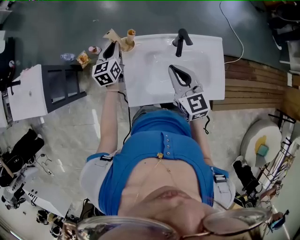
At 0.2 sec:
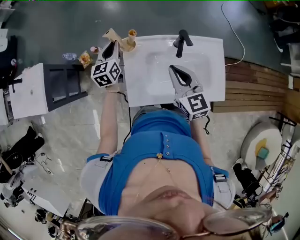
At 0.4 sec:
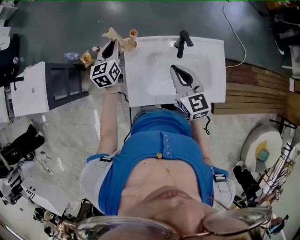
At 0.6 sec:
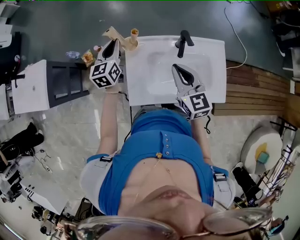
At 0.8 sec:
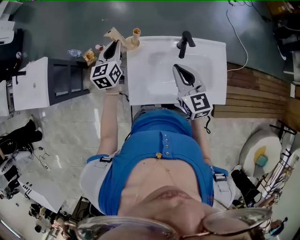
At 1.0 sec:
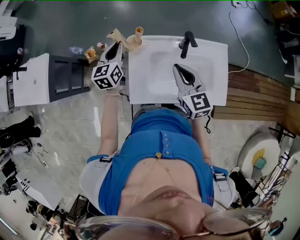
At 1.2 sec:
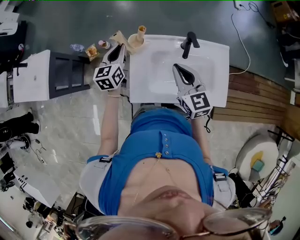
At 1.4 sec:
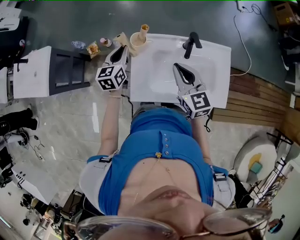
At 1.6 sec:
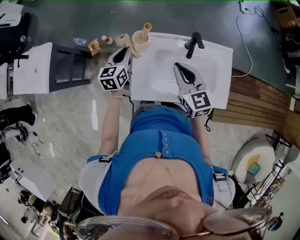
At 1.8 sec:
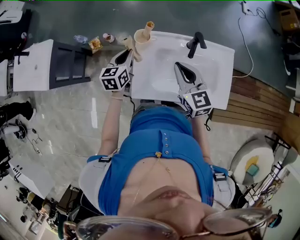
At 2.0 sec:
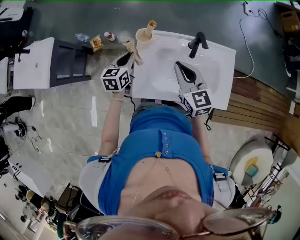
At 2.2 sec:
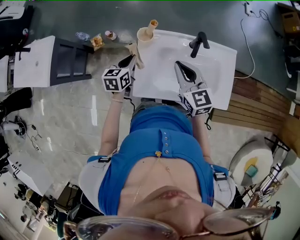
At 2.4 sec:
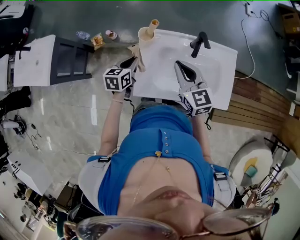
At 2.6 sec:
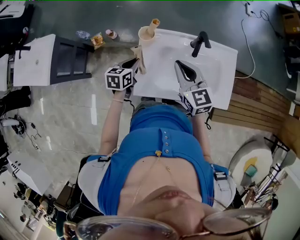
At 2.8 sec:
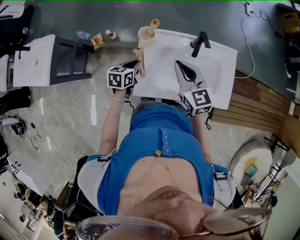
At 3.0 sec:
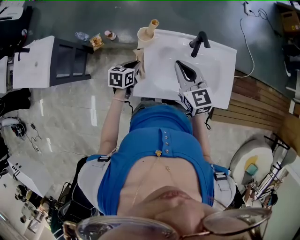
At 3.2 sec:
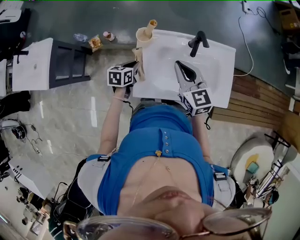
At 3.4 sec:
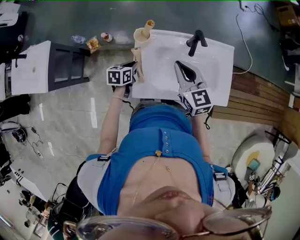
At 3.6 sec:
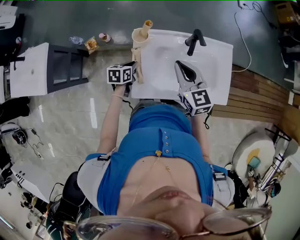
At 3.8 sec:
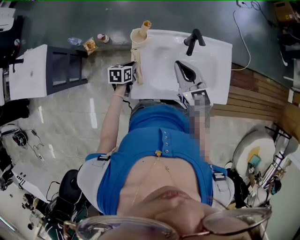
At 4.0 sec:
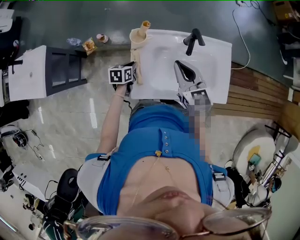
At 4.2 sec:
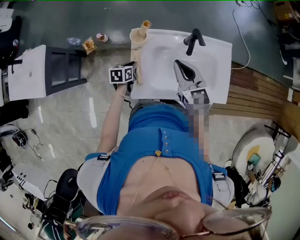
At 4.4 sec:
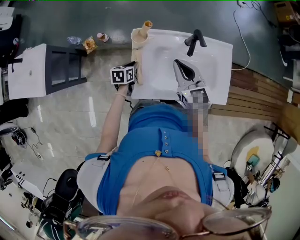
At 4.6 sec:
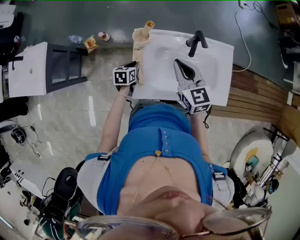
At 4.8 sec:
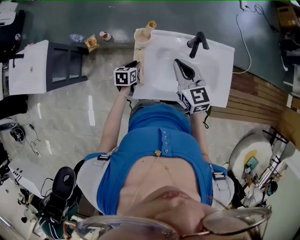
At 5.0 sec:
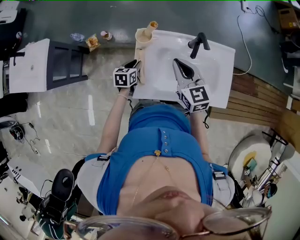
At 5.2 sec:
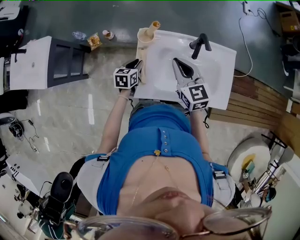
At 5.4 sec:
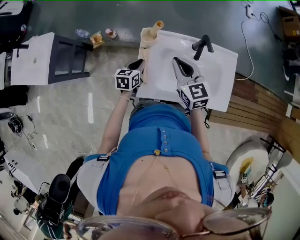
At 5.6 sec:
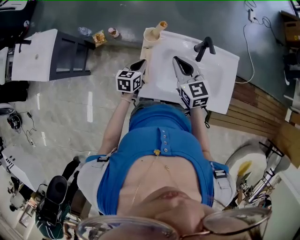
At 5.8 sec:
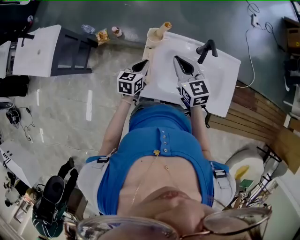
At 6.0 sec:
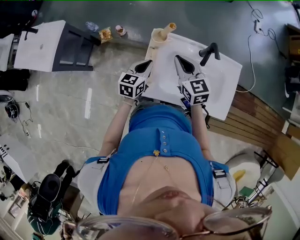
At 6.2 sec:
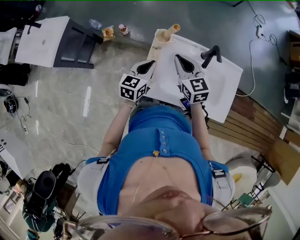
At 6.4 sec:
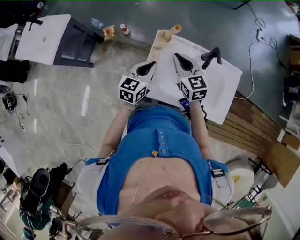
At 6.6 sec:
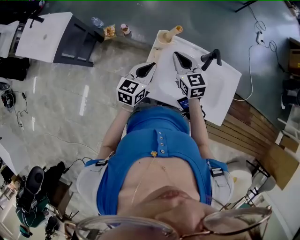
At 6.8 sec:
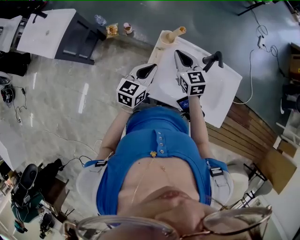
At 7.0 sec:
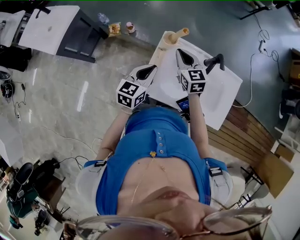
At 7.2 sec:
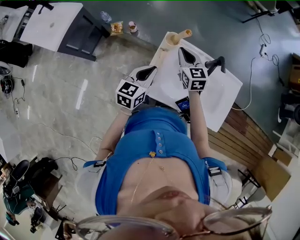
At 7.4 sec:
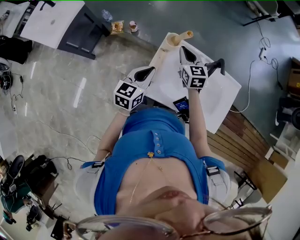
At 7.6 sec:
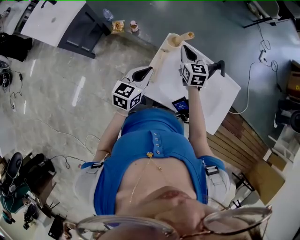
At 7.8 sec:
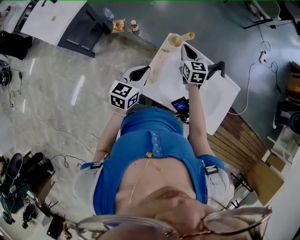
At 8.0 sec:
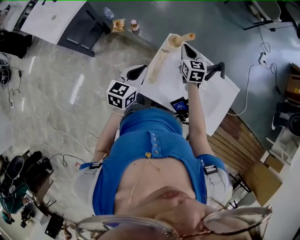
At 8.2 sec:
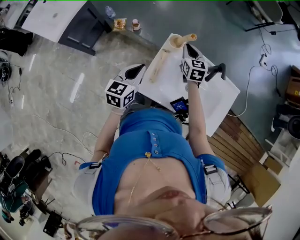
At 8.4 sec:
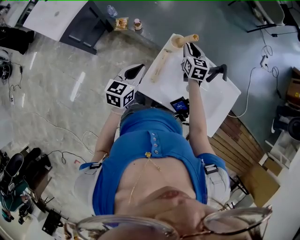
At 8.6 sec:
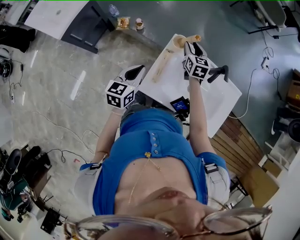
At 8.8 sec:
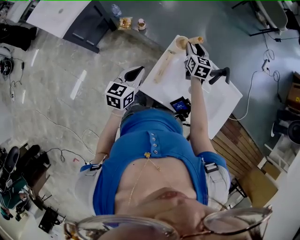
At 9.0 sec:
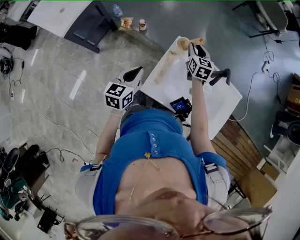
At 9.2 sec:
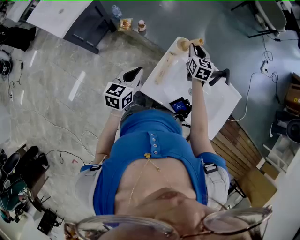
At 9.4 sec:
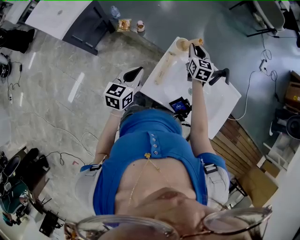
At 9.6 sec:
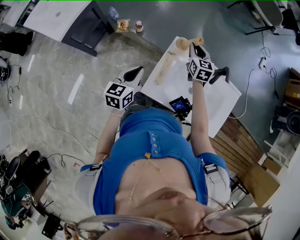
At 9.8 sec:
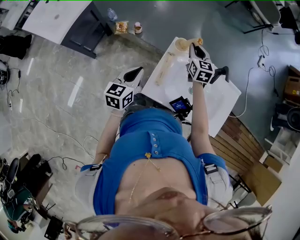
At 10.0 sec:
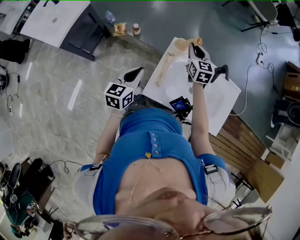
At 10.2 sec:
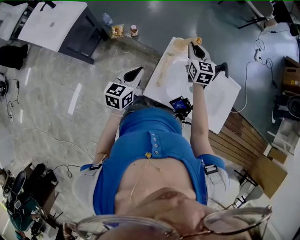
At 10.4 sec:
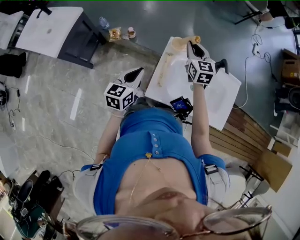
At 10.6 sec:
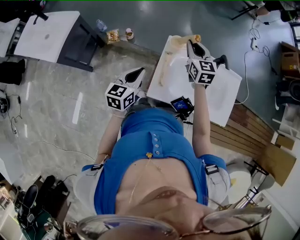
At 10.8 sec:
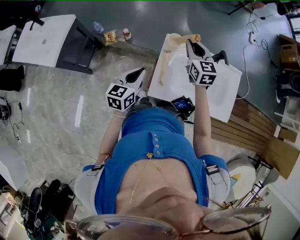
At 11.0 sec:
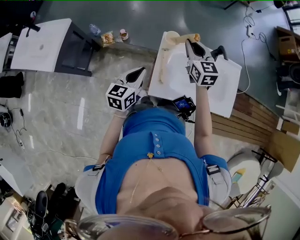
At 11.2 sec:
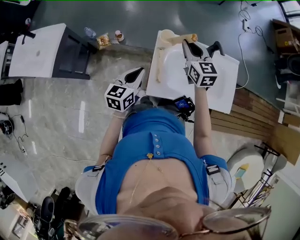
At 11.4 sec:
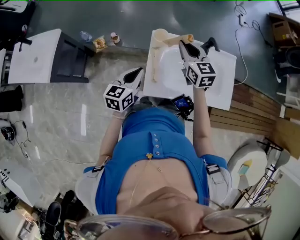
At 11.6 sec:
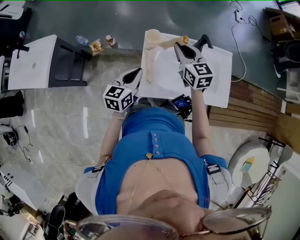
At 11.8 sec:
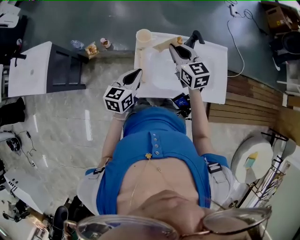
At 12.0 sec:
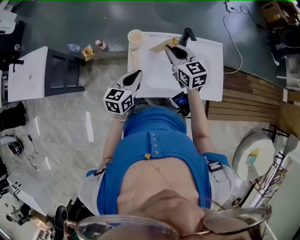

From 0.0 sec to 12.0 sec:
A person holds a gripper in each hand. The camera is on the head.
From 0.0 sec to 1.6 sec: The left gripper heads backward, covering about 5 cm.
From 1.6 sec to 3.0 sec: The left gripper heads downward and backward, covering roughly 10 cm, and changes its angle by some 30 degrees.
From 3.0 sec to 4.4 sec: The left gripper travels downward by some 10 cm.
From 4.4 sec to 6.0 sec: The left gripper shifts approximately 15 cm upward, and swivels approximately 30 degrees; the right gripper heads to the left, covering roughly 5 cm.
From 6.0 sec to 7.6 sec: The left gripper heads upward, covering about 5 cm. The right gripper is displaced forward by approximately 10 cm.
From 7.6 sec to 9.0 sec: The left gripper moves to the left, about 10 cm. The right gripper is displaced forward by about 5 cm, and opens its fingers.
From 9.0 sec to 10.4 sec: The right gripper heads upward, covering roughly 10 cm, and closes.
From 10.4 sec to 12.0 sec: The left gripper moves to the right, approximately 15 cm; the right gripper moves to the right and backward, about 15 cm.

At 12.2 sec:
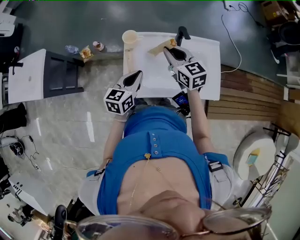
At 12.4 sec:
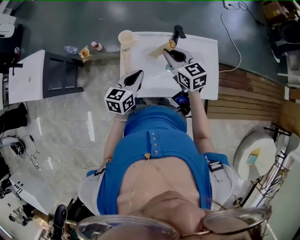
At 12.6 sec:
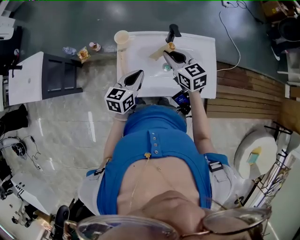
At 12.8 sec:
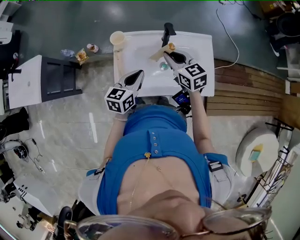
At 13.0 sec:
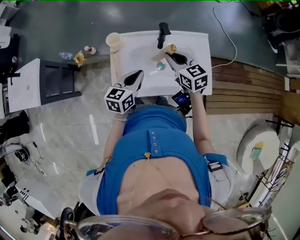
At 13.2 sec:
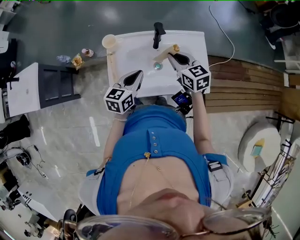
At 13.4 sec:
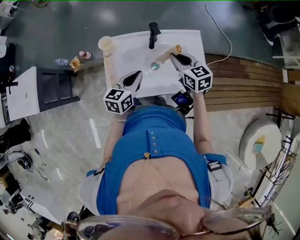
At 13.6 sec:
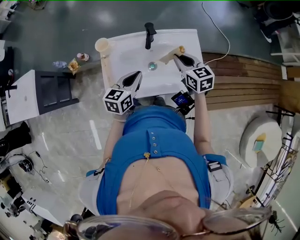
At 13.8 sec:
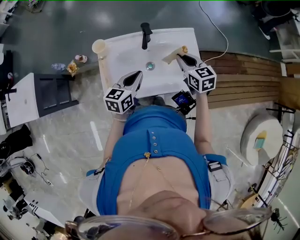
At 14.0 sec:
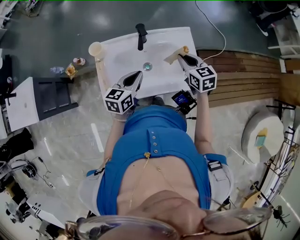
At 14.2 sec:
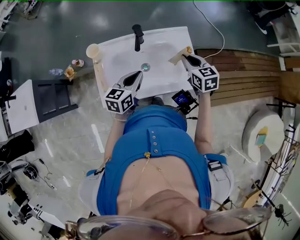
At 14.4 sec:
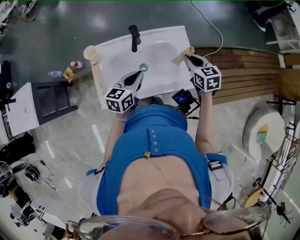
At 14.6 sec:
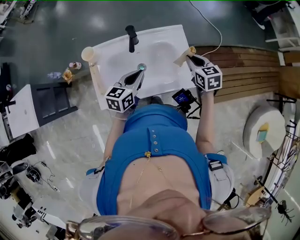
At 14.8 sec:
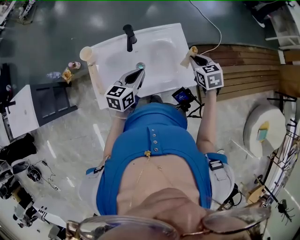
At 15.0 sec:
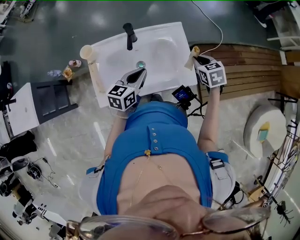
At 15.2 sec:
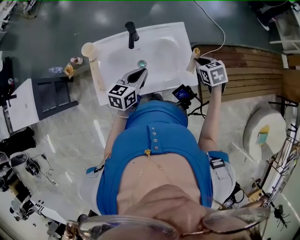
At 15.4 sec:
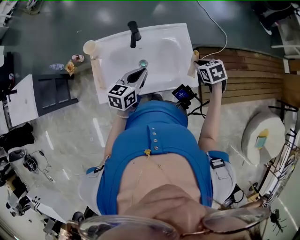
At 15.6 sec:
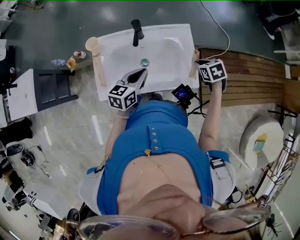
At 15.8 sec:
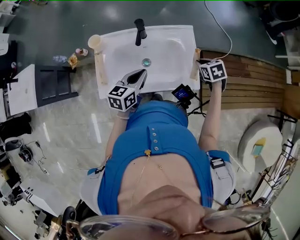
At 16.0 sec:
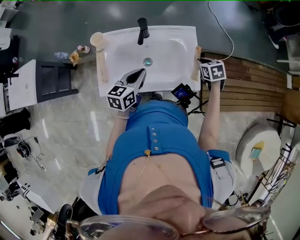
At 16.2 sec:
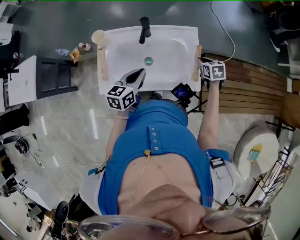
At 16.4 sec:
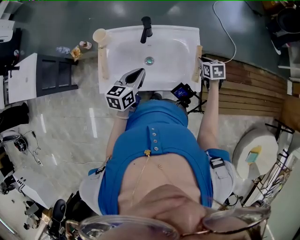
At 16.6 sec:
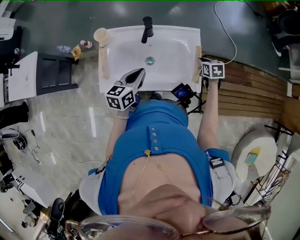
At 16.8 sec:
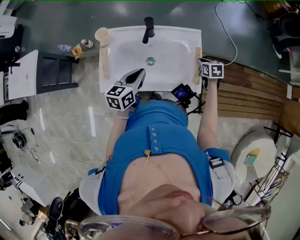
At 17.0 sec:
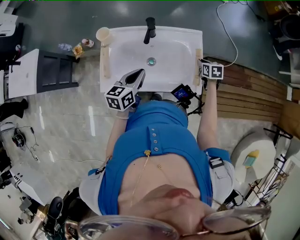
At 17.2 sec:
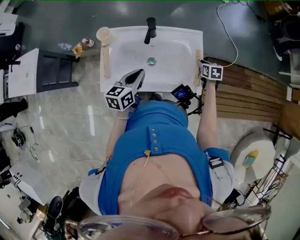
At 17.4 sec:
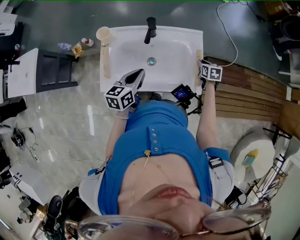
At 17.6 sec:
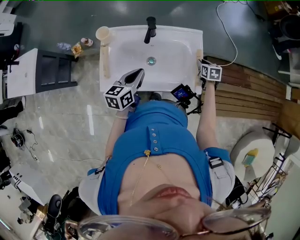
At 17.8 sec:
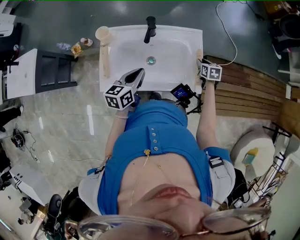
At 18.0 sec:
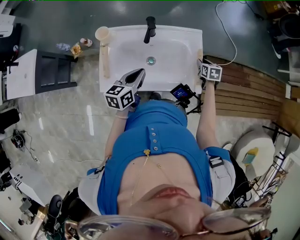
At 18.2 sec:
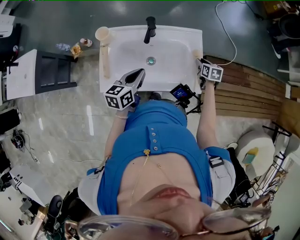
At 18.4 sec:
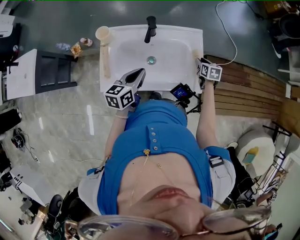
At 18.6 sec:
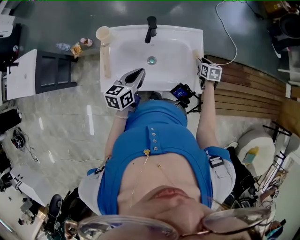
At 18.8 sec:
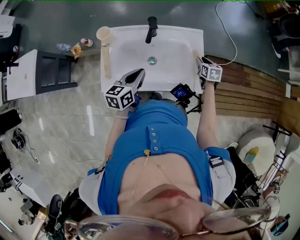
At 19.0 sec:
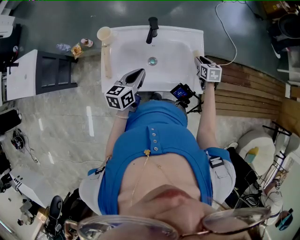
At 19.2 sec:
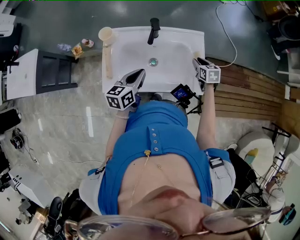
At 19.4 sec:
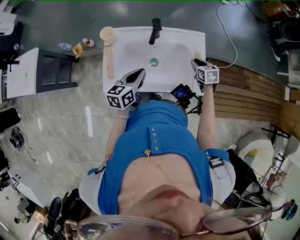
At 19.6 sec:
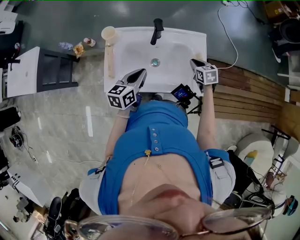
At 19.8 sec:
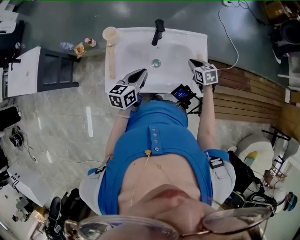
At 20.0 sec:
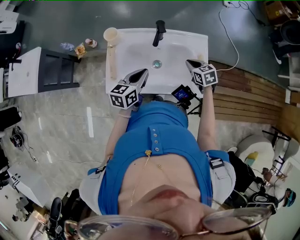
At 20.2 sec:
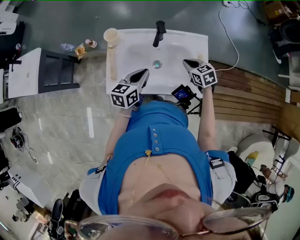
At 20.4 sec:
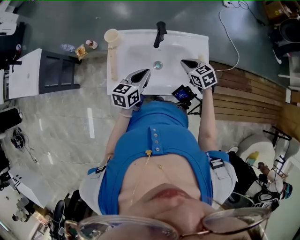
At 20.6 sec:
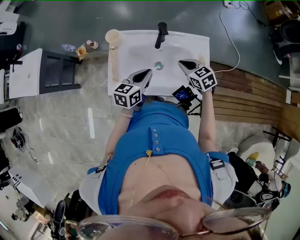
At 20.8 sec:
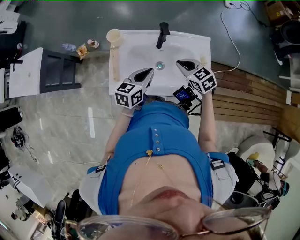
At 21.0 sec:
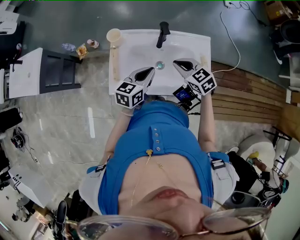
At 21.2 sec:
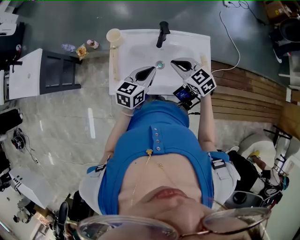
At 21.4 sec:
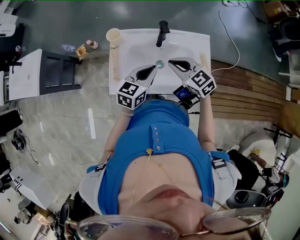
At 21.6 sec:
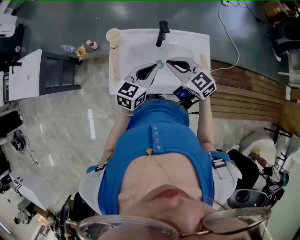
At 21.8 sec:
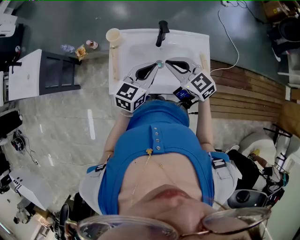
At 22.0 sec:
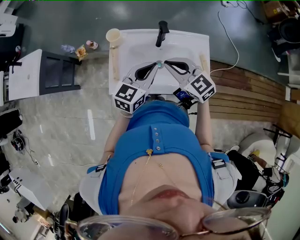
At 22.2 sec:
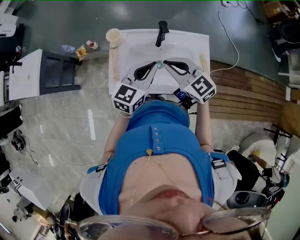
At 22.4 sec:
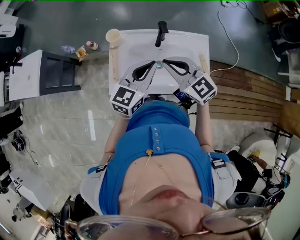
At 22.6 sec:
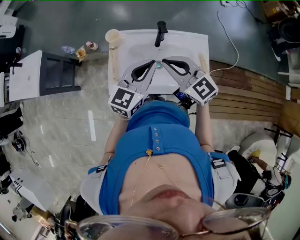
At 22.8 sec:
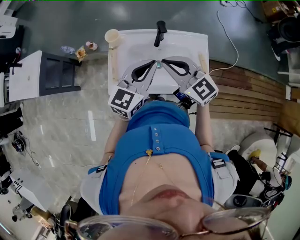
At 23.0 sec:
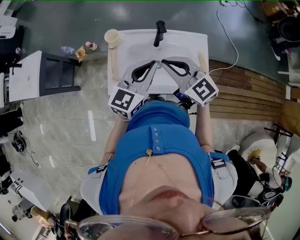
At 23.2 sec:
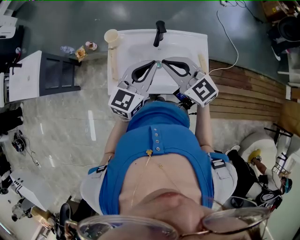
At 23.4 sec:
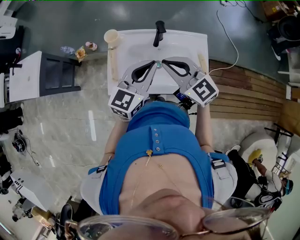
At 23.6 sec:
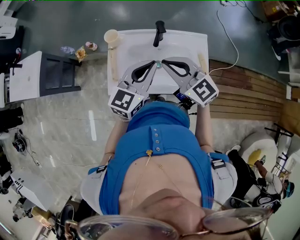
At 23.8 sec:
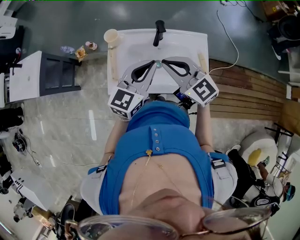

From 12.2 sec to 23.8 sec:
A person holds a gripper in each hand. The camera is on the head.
From 12.2 sec to 13.6 sec: The left gripper travels to the right by some 10 cm; the right gripper moves to the right, roughly 20 cm.
From 13.6 sec to 15.0 sec: The right gripper moves to the right, some 20 cm, and swivels some 30 degrees, while the left gripper travels to the right by about 10 cm.
From 15.0 sec to 16.6 sec: The right gripper is displaced downward and forward by some 10 cm.
From 16.6 sec to 18.0 sec: The grippers make only small movements.
From 18.0 sec to 19.4 sec: The right gripper moves to the left, some 5 cm.
From 19.4 sec to 21.0 sec: The right gripper is displaced to the left and upward by some 20 cm, and swivels roughly 40 degrees.
From 21.0 sec to 22.4 sec: The right gripper goes some 15 cm upward and to the left, and rotates some 20 degrees. Meanwhile the left gripper shifts some 10 cm upward, and turns by approximately 20 degrees.
From 22.4 sec to 23.8 sec: The grippers make only small movements.
